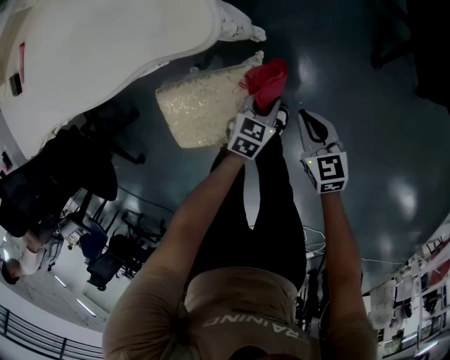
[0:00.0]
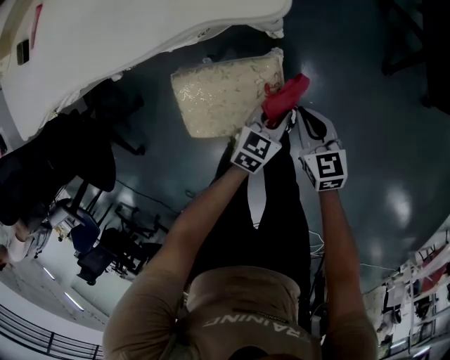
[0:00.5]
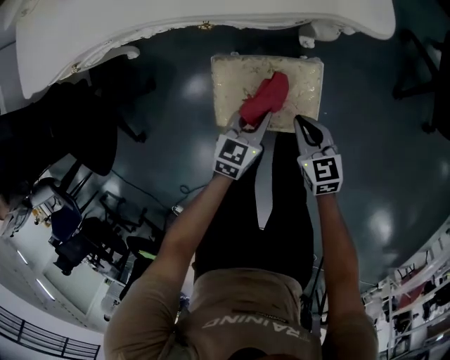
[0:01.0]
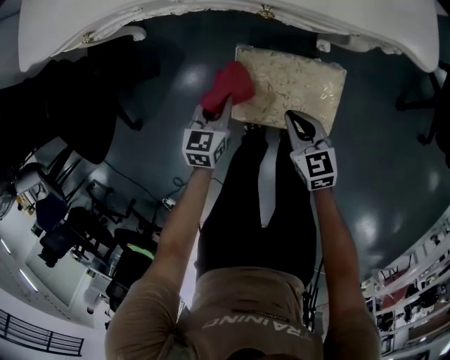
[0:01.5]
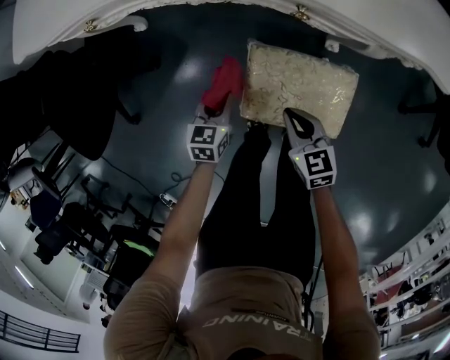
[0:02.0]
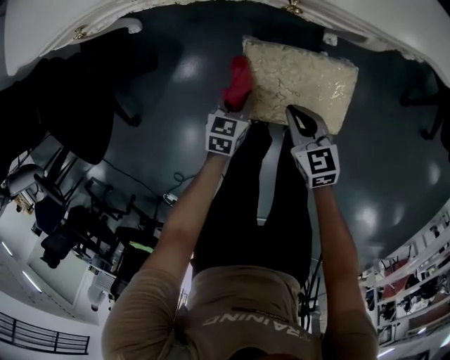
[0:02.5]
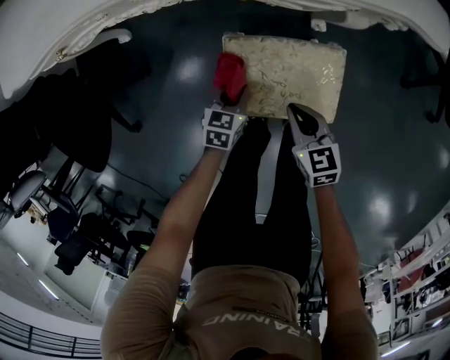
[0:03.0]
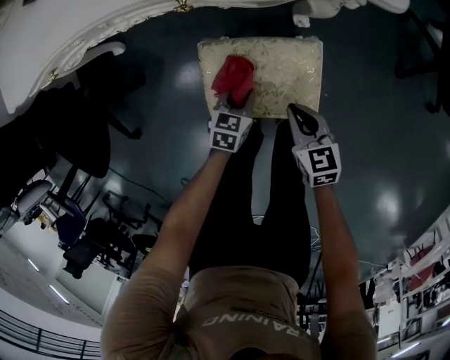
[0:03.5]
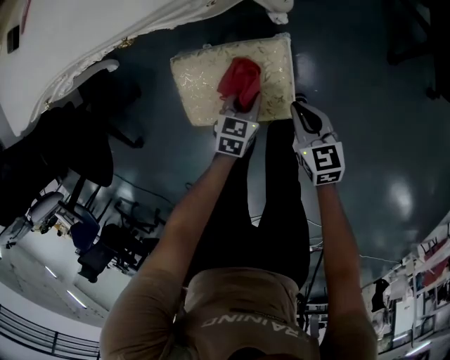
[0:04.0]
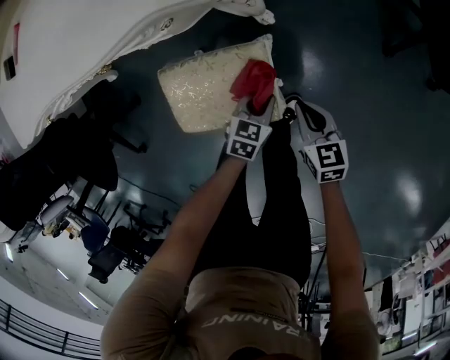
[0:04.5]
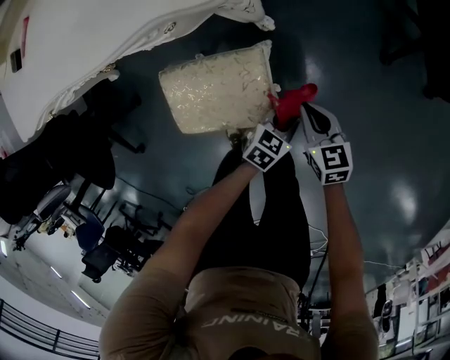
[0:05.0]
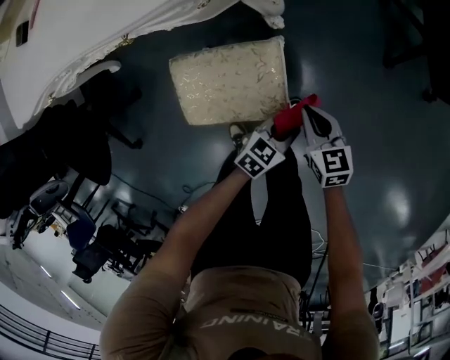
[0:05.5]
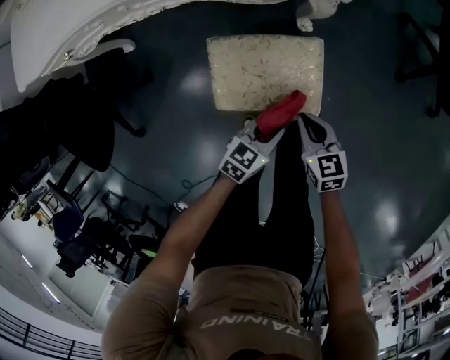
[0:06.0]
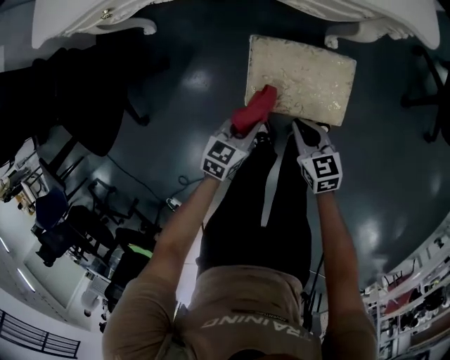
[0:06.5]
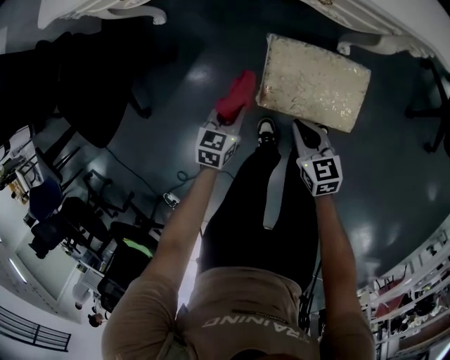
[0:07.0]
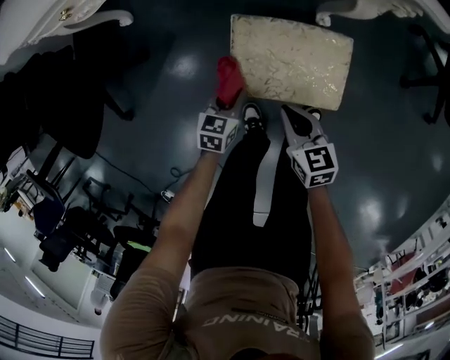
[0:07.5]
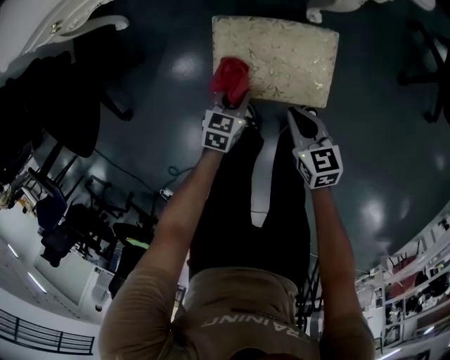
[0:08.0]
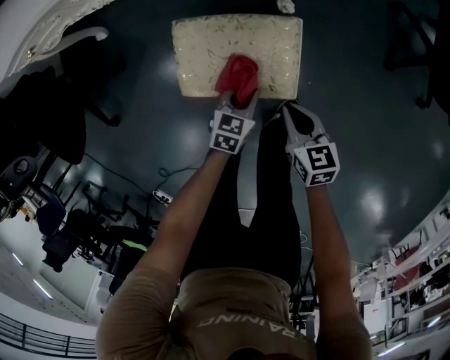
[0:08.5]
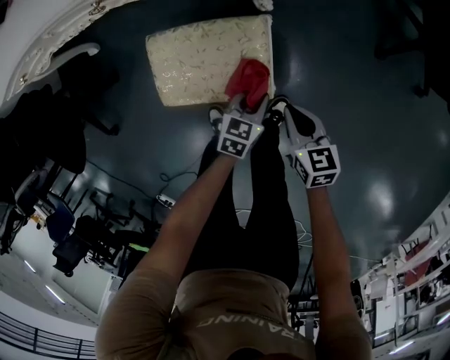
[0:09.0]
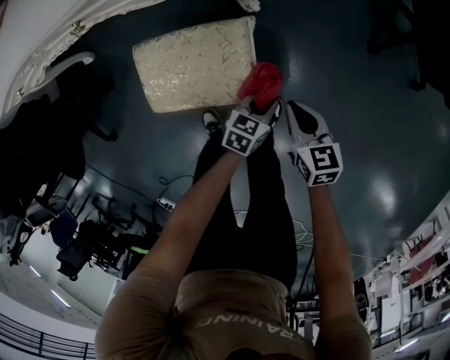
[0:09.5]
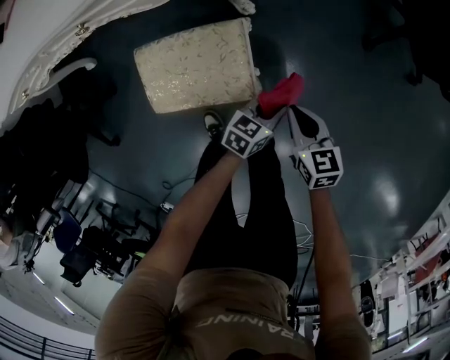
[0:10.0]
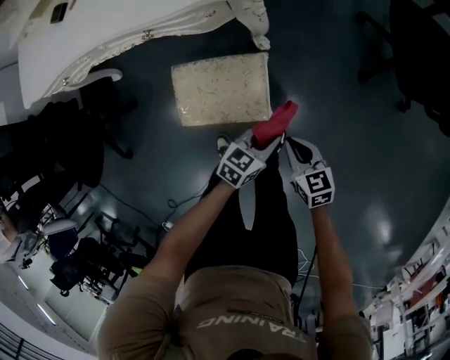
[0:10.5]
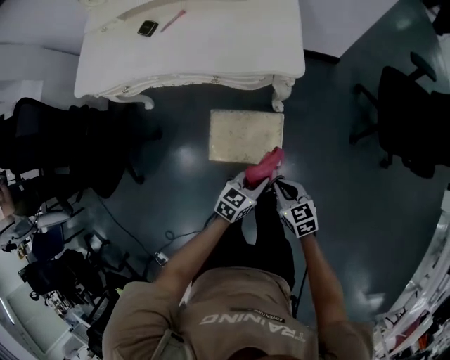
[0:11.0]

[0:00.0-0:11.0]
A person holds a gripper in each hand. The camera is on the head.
0:00.0 to 0:02.0: The right gripper moves approximately 40 cm, and changes its angle by roughly 20 degrees. The left gripper changes place by roughly 50 cm, and changes its angle by approximately 40 degrees.
0:02.0 to 0:03.5: The two grippers go about 15 cm to the right. The left gripper turns by some 20 degrees.
0:03.5 to 0:05.5: The right gripper travels to the right by some 15 cm. Meanwhile the left gripper goes some 25 cm to the right, and changes its angle by about 30 degrees.
0:05.5 to 0:07.5: The right gripper moves some 30 cm. Meanwhile the left gripper ends up about 40 cm from where it was, and swivels roughly 40 degrees.
0:07.5 to 0:09.0: The grippers both shift to the right by some 30 cm.
0:09.0 to 0:11.0: Both grippers travel together upward, approximately 30 cm. The right gripper turns by roughly 20 degrees.

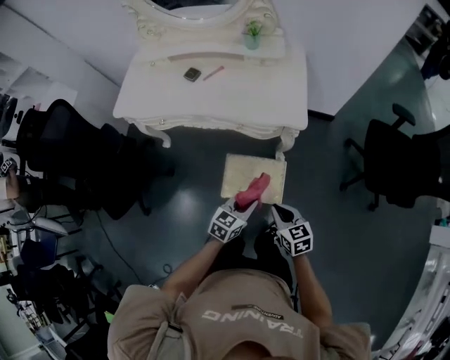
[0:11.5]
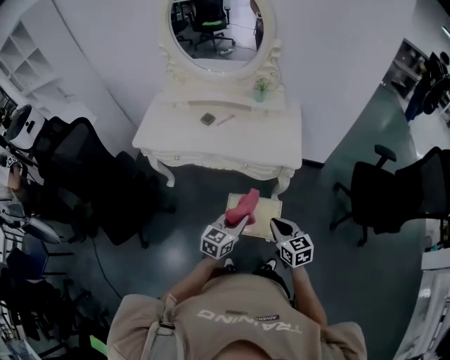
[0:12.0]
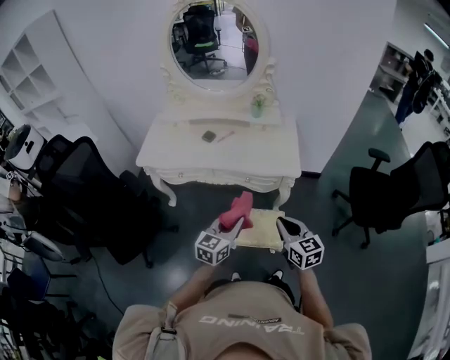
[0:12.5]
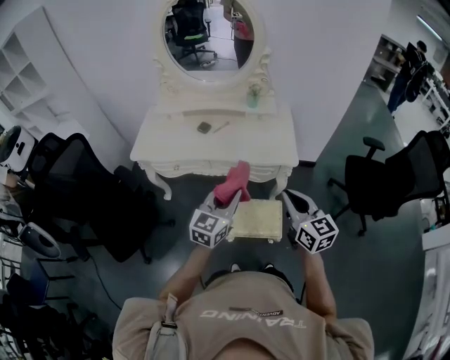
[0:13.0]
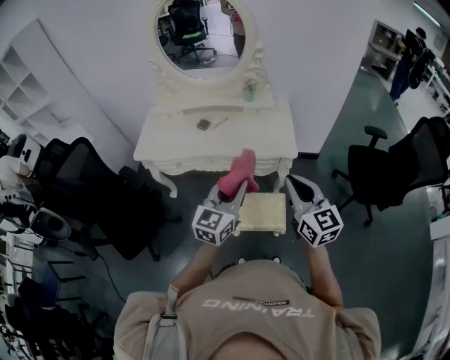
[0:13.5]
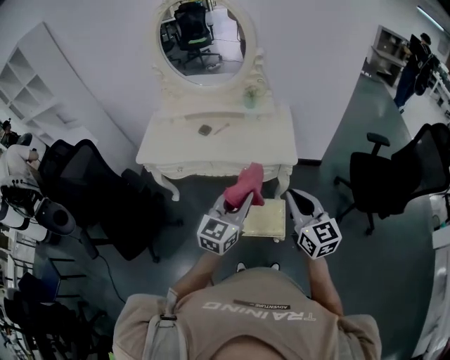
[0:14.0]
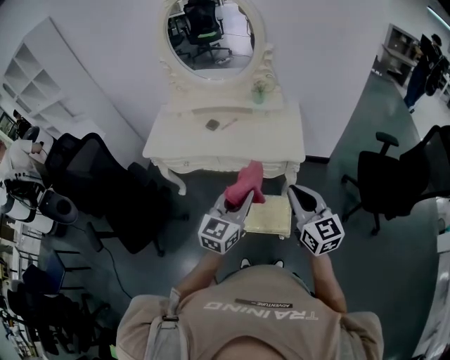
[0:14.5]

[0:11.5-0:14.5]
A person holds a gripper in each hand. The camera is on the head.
0:11.5 to 0:13.0: The left gripper is displaced upward and to the left by some 30 cm, and changes its angle by some 30 degrees; the right gripper travels upward by approximately 30 cm, and rotates roughly 30 degrees.
0:13.0 to 0:14.5: The left gripper heads to the right, covering approximately 5 cm. The right gripper shifts by roughly 5 cm.

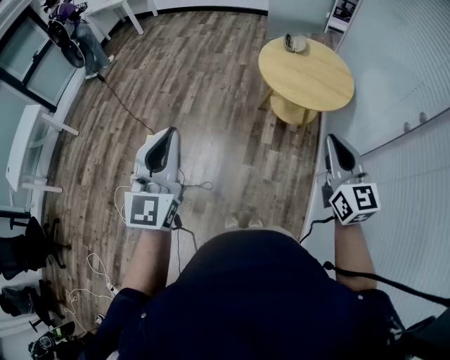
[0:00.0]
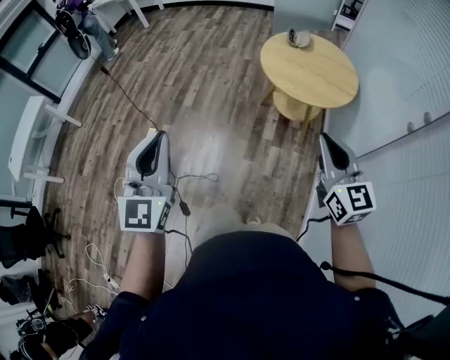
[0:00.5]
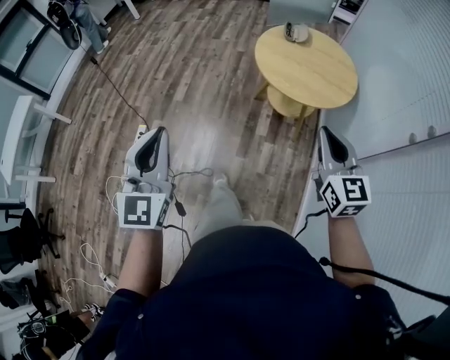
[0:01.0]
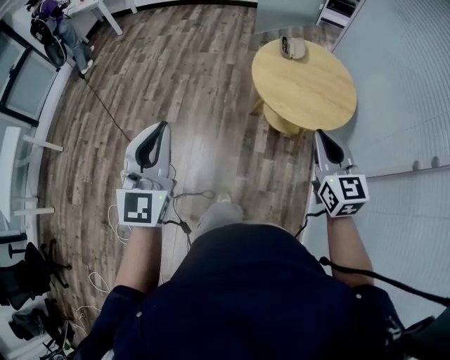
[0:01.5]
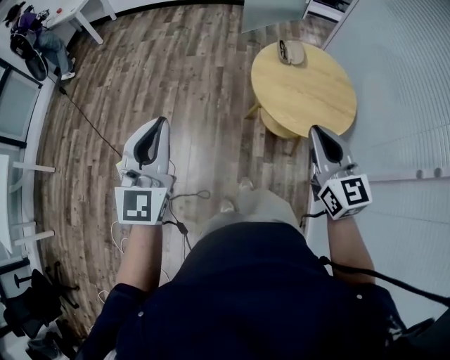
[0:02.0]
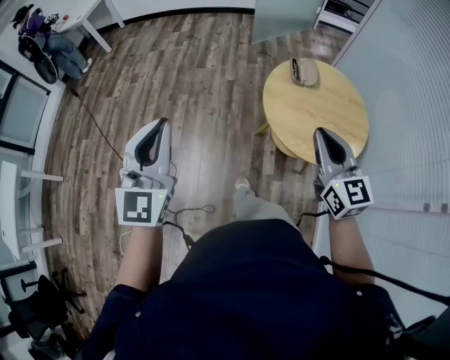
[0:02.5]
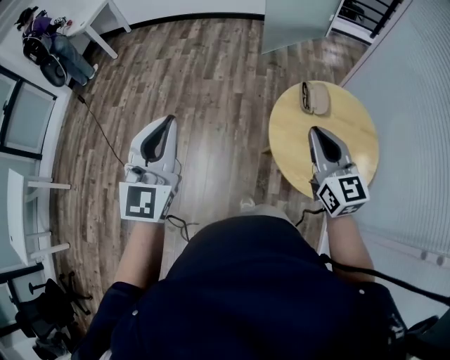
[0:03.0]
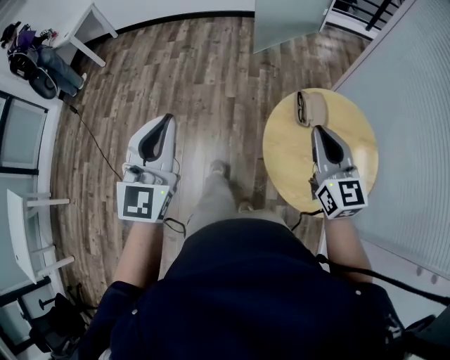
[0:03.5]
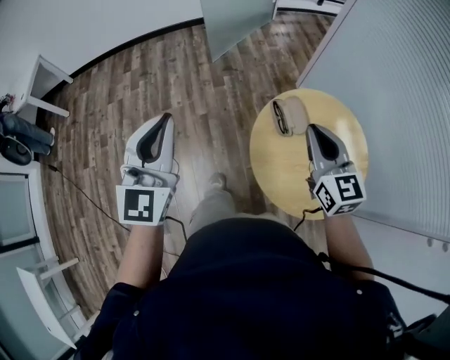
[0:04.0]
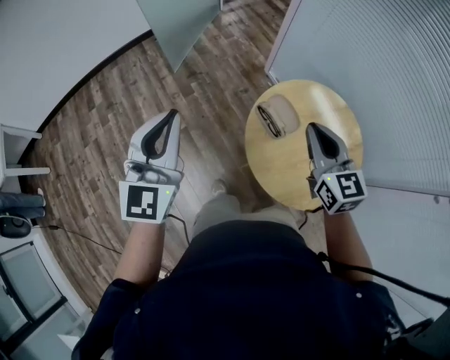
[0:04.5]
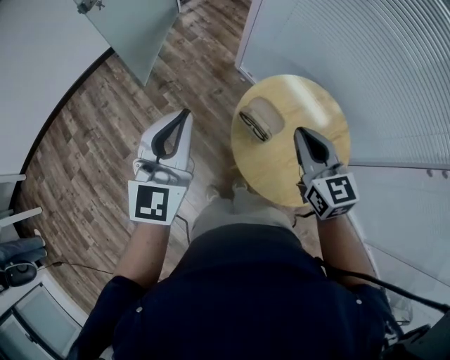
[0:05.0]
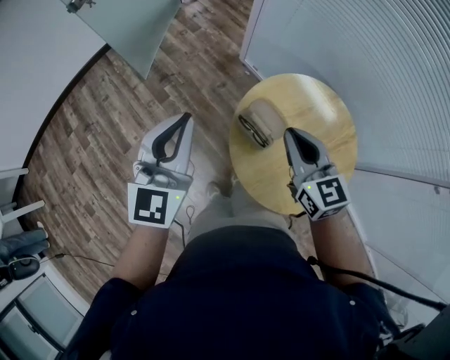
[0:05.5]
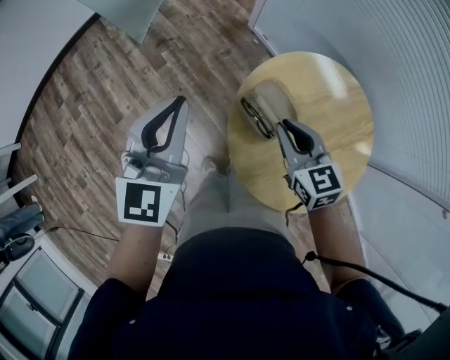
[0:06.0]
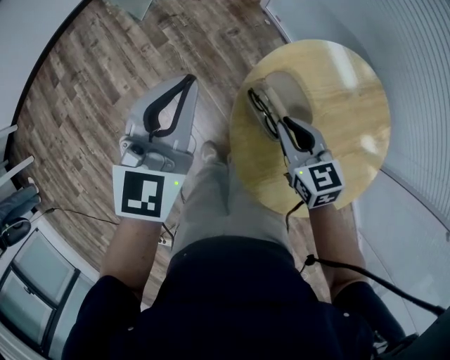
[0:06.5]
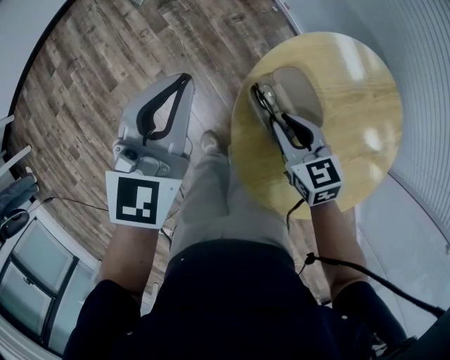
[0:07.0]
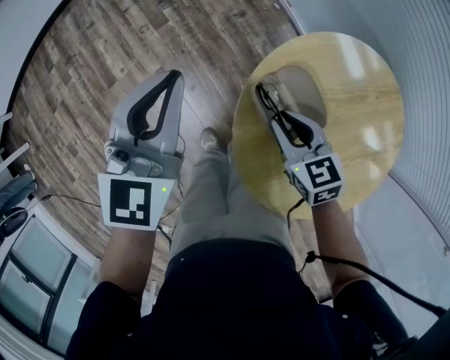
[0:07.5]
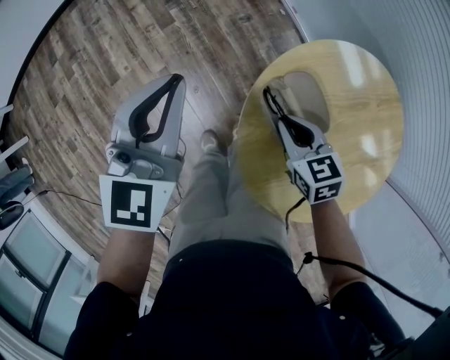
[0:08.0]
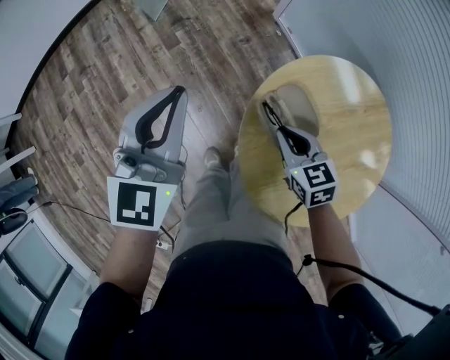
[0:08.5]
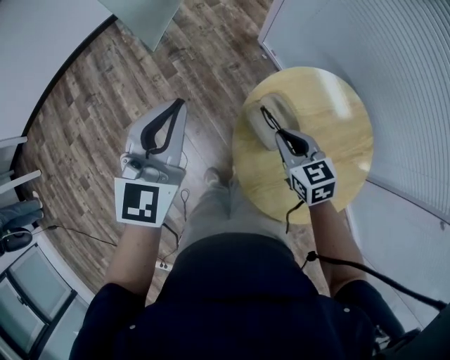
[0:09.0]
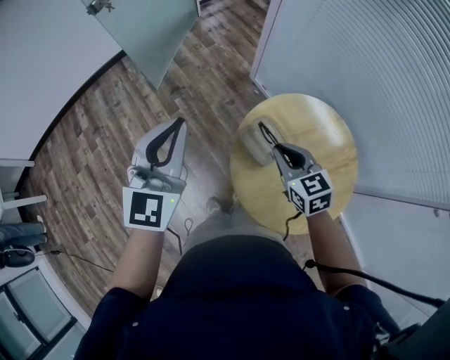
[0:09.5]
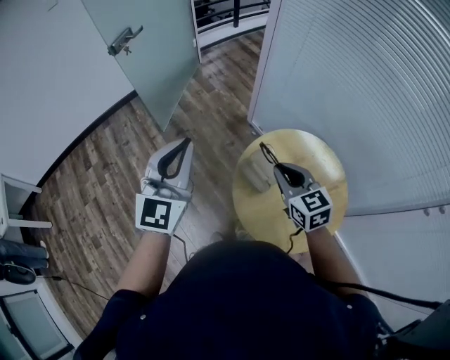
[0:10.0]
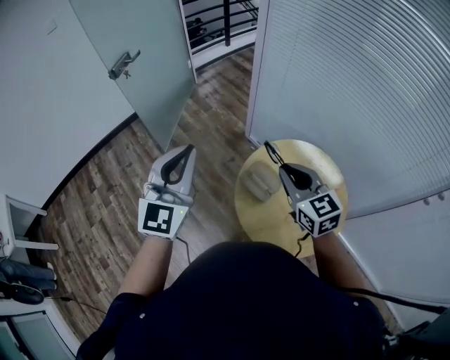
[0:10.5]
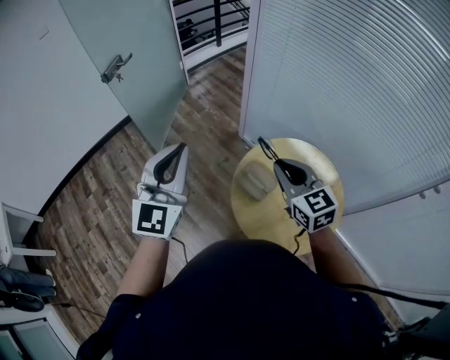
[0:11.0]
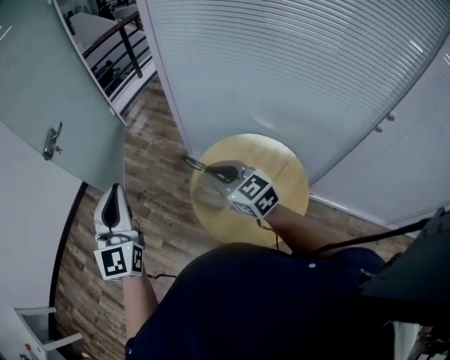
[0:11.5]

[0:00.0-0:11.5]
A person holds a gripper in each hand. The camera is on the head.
0:00.0 to 0:02.0: The grippers both shift forward by approximately 30 cm.
0:02.0 to 0:04.0: Both grippers are carried forward, about 50 cm.
0:04.0 to 0:06.0: The right gripper shifts roughly 20 cm downward, and changes its angle by approximately 30 degrees. The left gripper ends up about 35 cm from where it was, and rotates roughly 30 degrees.
0:06.0 to 0:07.5: The grippers both shift downward by approximately 10 cm.
0:07.5 to 0:09.5: The two grippers go roughly 20 cm upward.
0:09.5 to 0:11.5: The grippers both shift upward by about 15 cm.

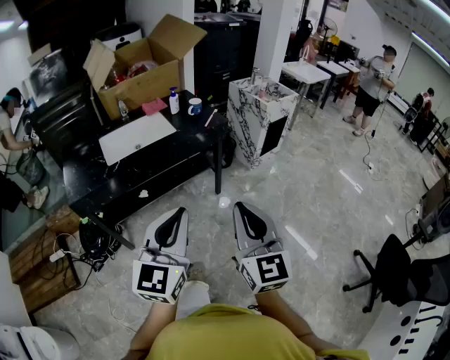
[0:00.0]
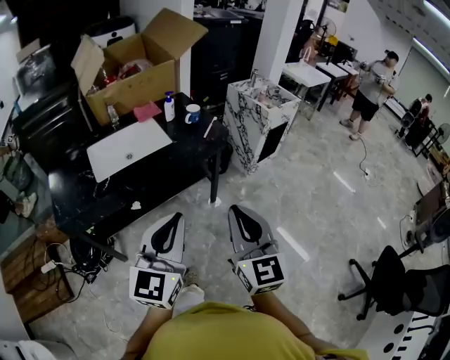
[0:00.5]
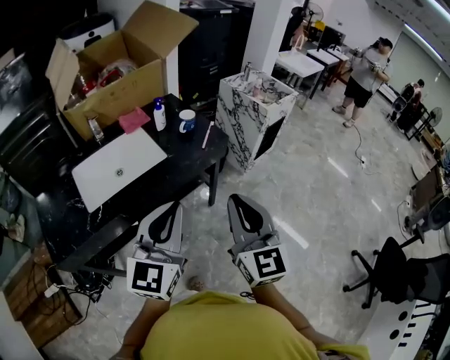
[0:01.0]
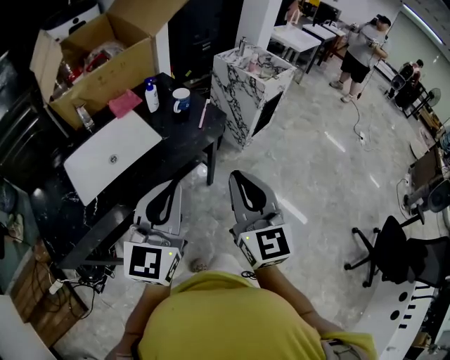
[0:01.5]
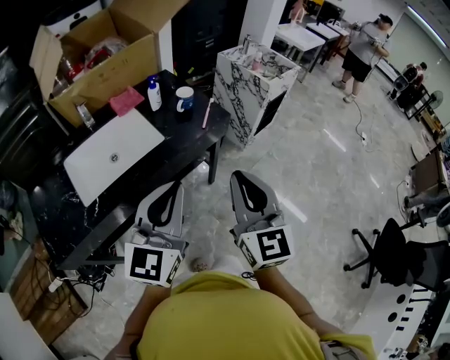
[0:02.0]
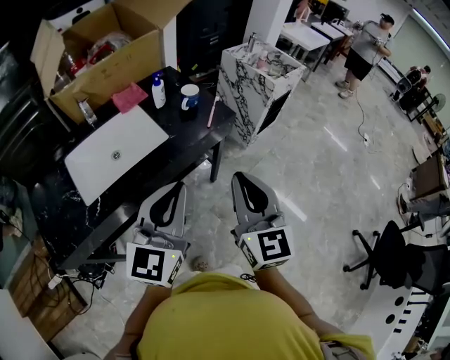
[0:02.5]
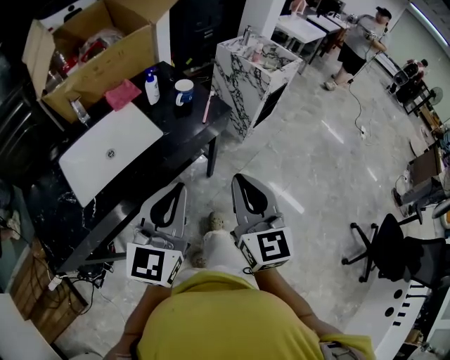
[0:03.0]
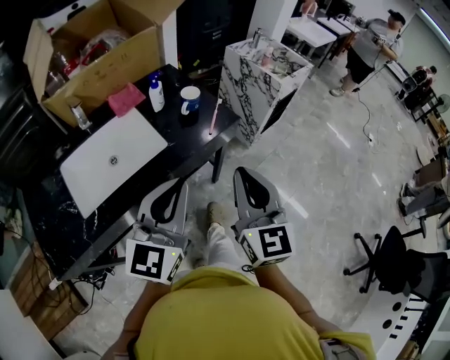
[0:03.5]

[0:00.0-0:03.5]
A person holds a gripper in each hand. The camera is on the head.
0:00.0 to 0:02.0: Both grippers move forward, about 30 cm.
0:02.0 to 0:03.5: Both grippers travel together forward, roughly 10 cm.
